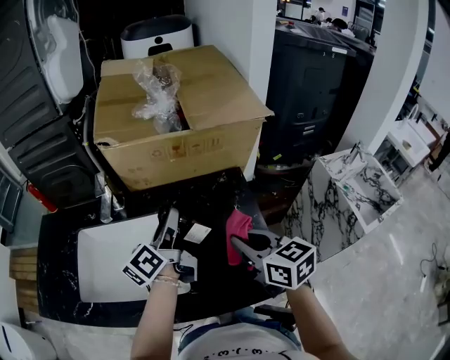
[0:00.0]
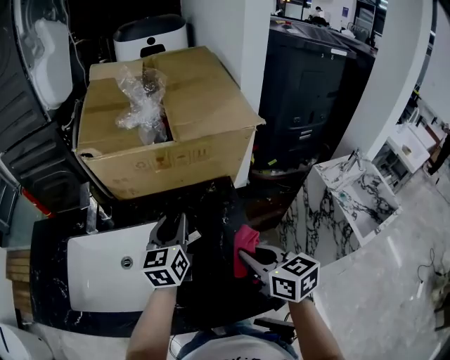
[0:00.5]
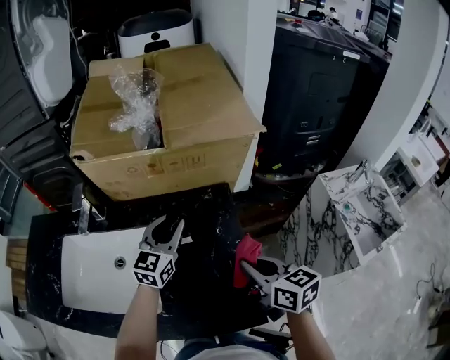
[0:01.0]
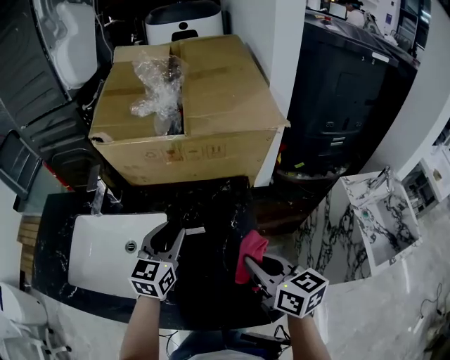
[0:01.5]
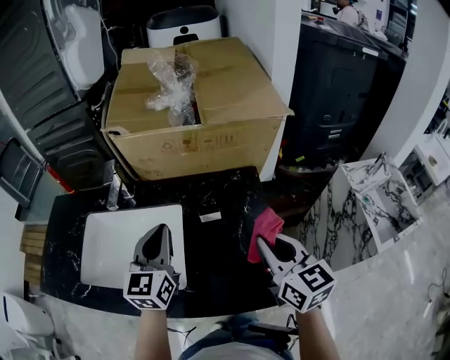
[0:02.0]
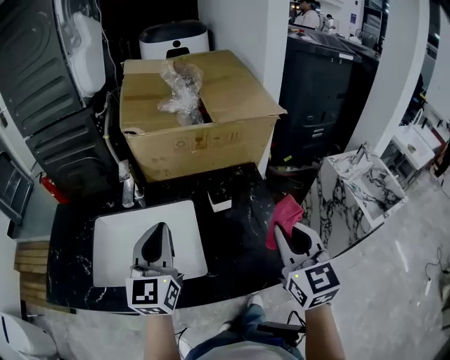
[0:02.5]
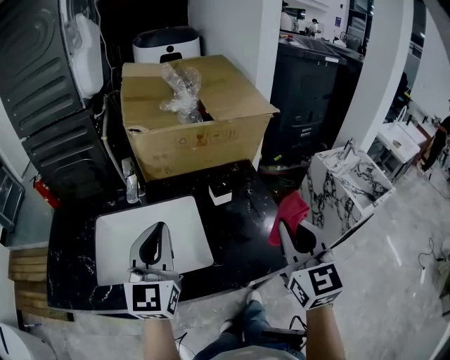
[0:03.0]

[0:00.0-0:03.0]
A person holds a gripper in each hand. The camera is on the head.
0:00.0 to 0:01.5: The left gripper goes approximately 10 cm downward and to the right, and rolls clockwise, seen from behind, by approximately 50 degrees; the right gripper shifts roughly 10 cm to the right.
0:01.5 to 0:03.0: The right gripper shifts about 20 cm upward, backward and to the left, and rotates roughly 50 degrees; the left gripper is displaced backward, to the left and upward by some 25 cm, turns by roughly 20 degrees, and closes its fingers.

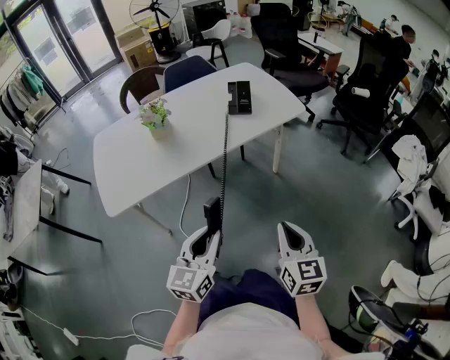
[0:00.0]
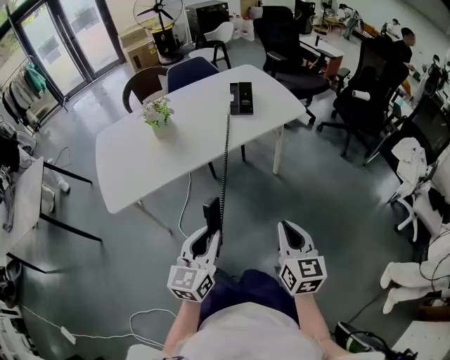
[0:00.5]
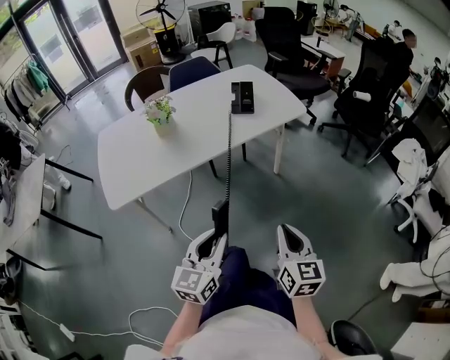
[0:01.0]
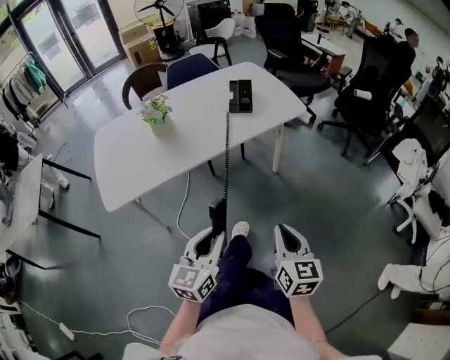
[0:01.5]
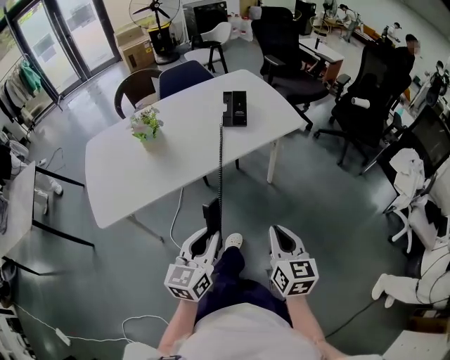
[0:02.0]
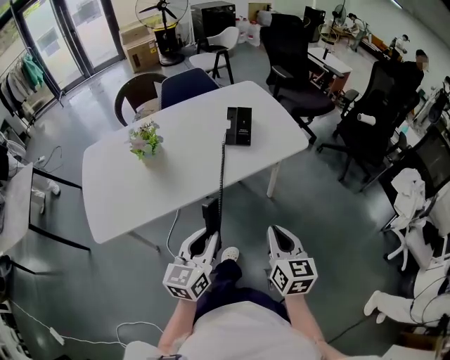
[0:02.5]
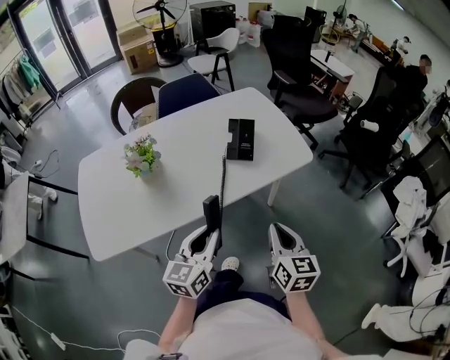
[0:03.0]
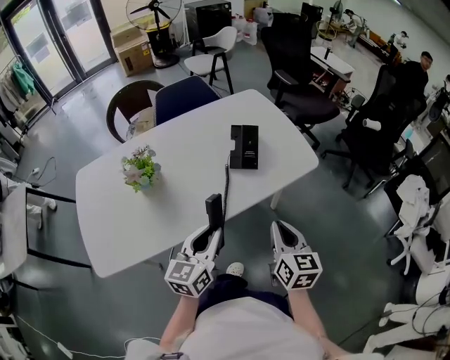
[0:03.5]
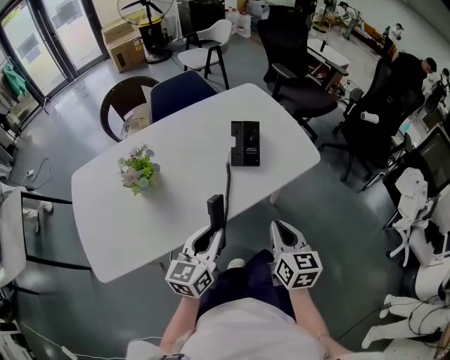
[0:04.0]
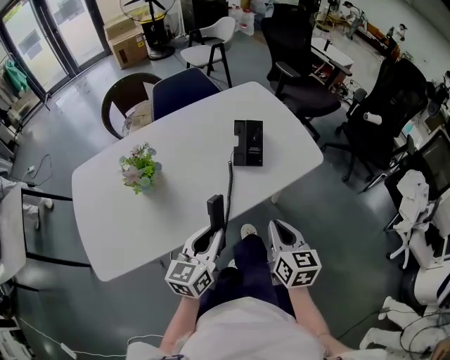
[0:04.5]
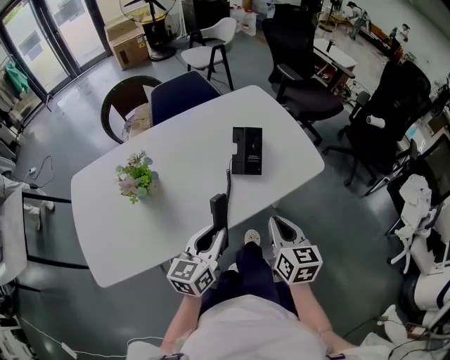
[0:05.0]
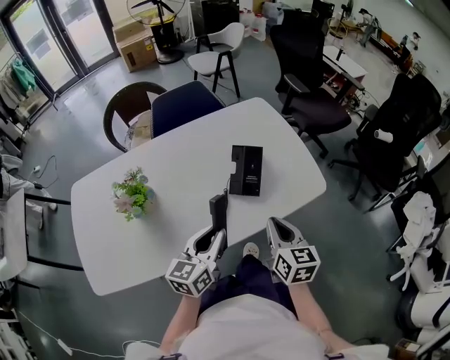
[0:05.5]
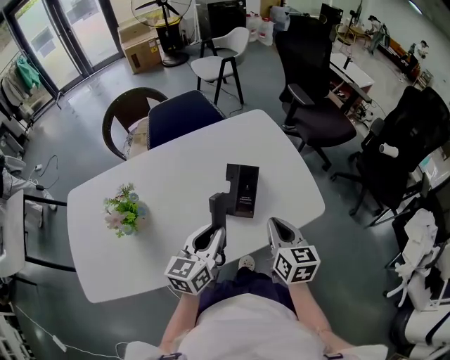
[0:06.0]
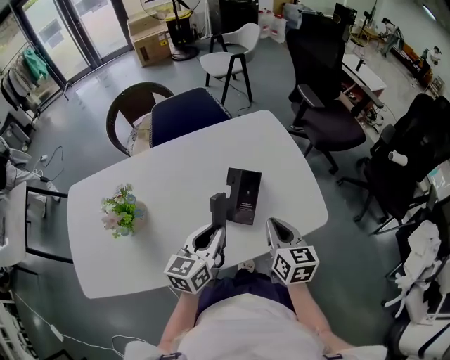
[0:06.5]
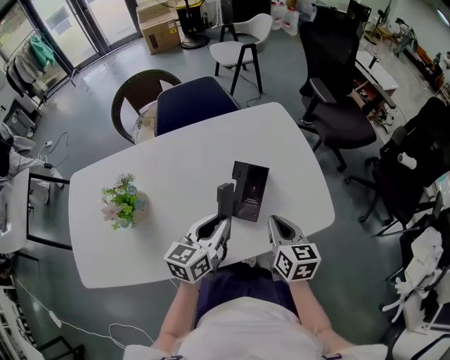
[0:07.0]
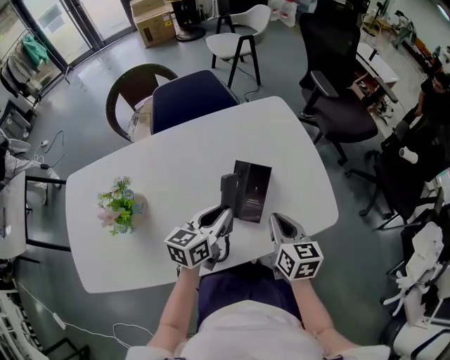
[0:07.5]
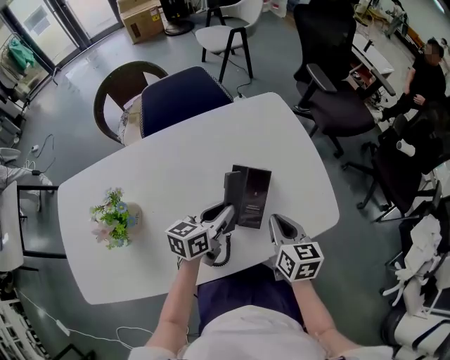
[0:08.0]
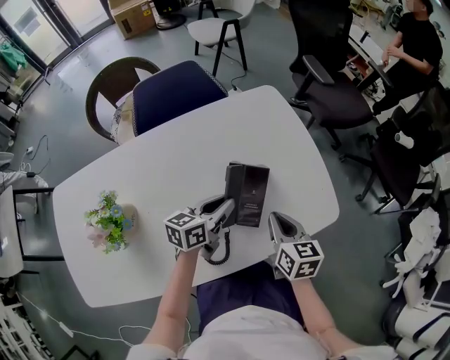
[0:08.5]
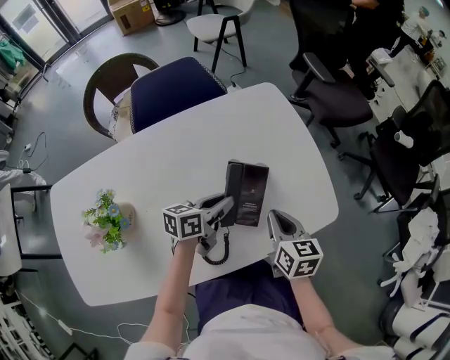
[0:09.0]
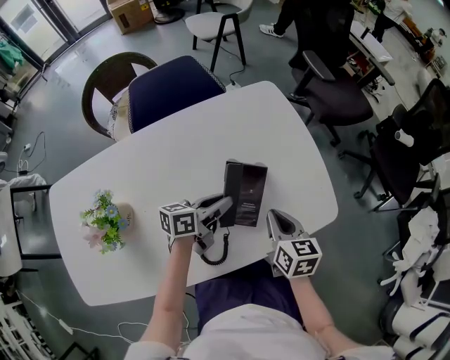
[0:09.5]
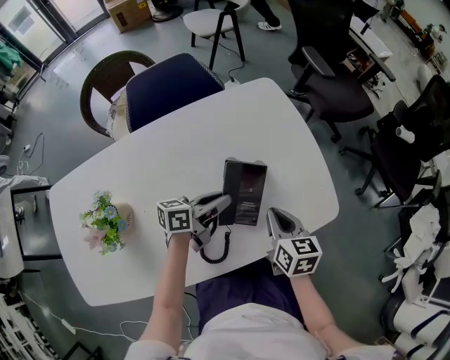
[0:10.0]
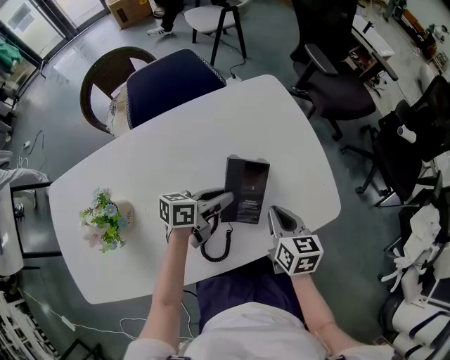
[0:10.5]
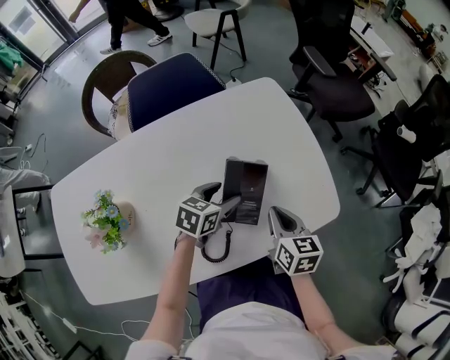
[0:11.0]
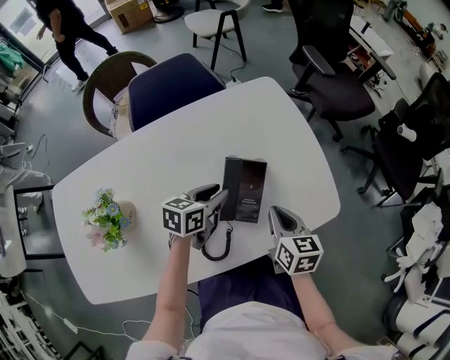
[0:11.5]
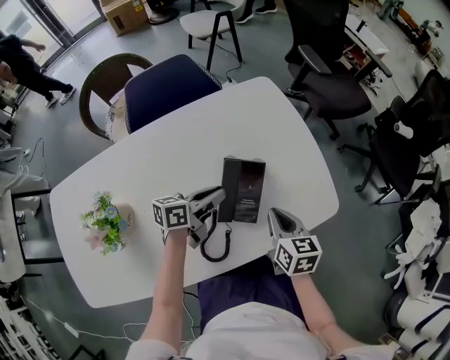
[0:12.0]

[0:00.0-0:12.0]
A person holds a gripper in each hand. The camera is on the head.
0:00.0 to 0:02.0: Both grippers move forward, roughly 5 cm.
0:02.0 to 0:04.0: Both grippers travel together forward, about 25 cm.
0:04.0 to 0:06.0: Both grippers travel together forward, some 20 cm.
0:06.0 to 0:08.0: The right gripper heads downward and forward, covering about 10 cm. Meanwhile the left gripper shifts some 15 cm forward and downward.
0:08.0 to 0:10.0: The left gripper changes its angle by about 20 degrees.
0:10.0 to 0:12.0: The left gripper opens, then closes again.

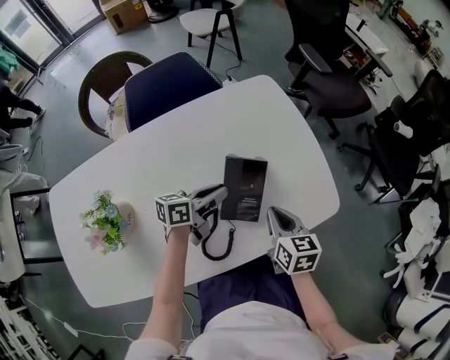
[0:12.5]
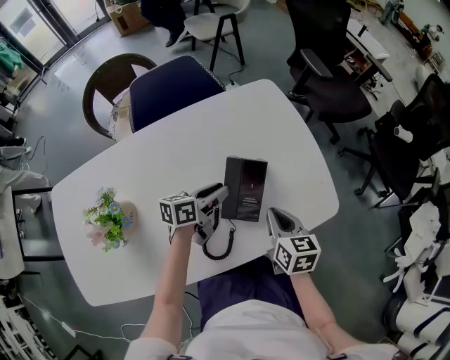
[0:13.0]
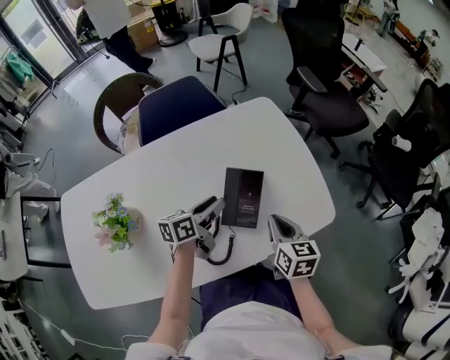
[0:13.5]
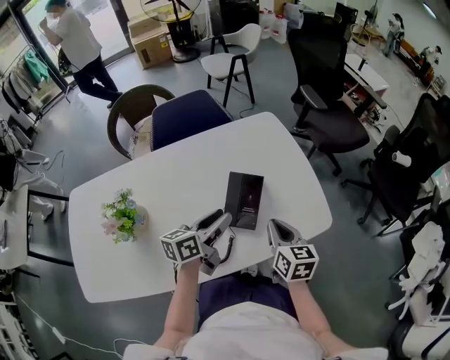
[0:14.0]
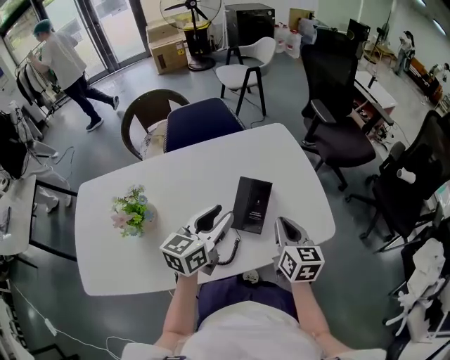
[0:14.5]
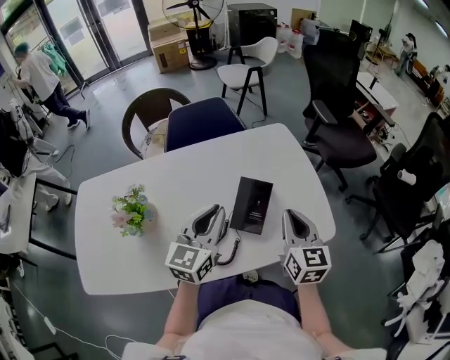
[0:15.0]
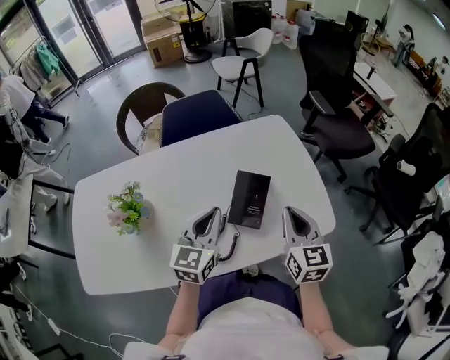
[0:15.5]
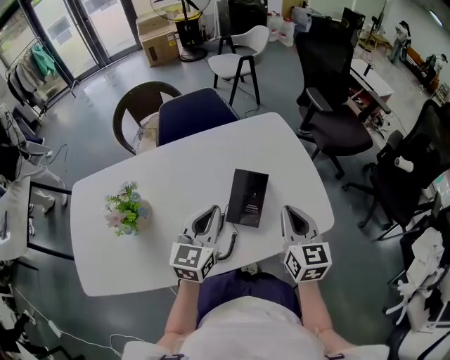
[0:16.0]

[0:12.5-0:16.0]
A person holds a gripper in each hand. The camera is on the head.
0:12.5 to 0:14.5: The right gripper goes approximately 10 cm upward. Meanwhile the left gripper goes about 15 cm upward and backward, and swivels about 40 degrees.
0:14.5 to 0:16.0: The left gripper swivels approximately 20 degrees, and closes its fingers.

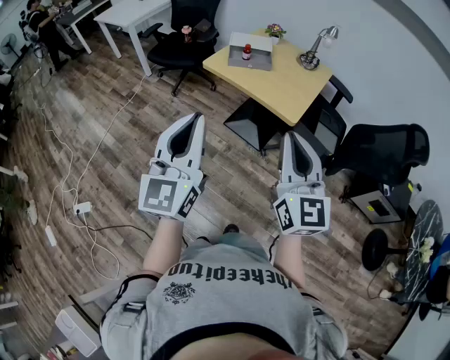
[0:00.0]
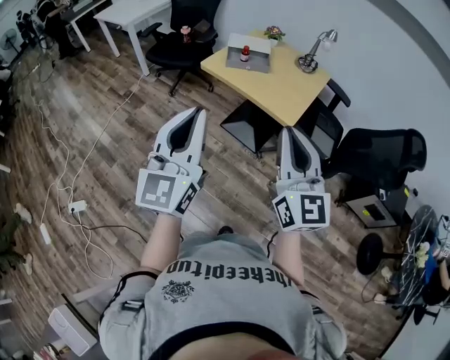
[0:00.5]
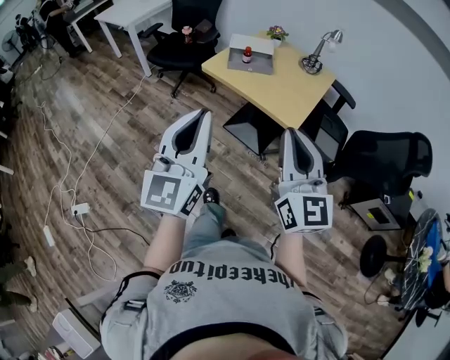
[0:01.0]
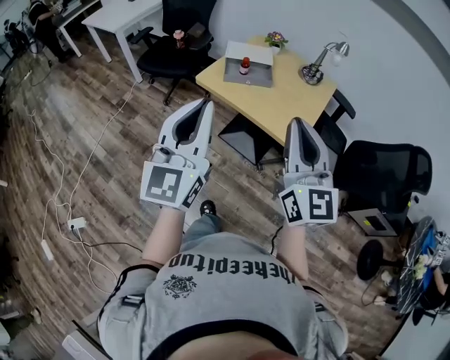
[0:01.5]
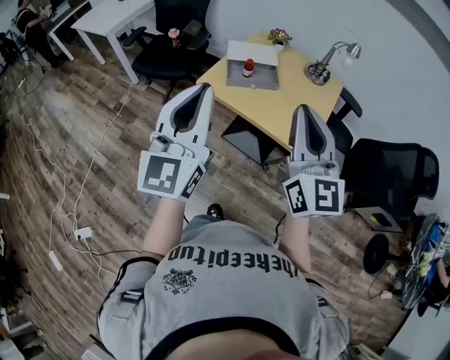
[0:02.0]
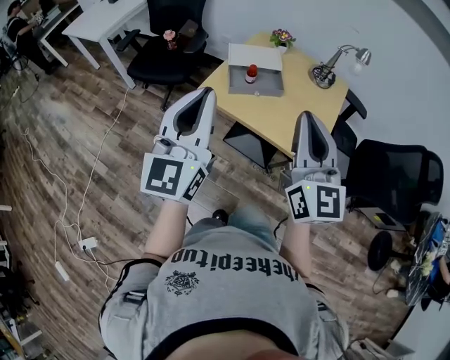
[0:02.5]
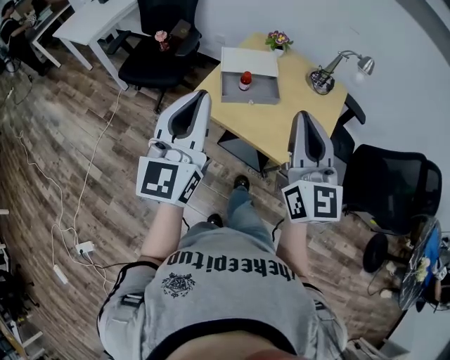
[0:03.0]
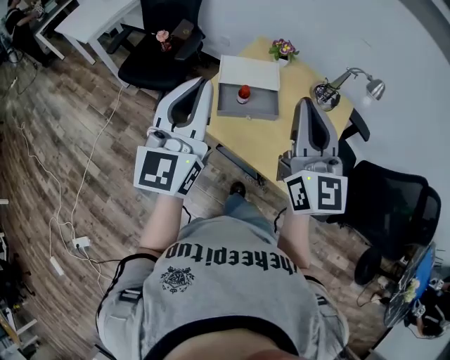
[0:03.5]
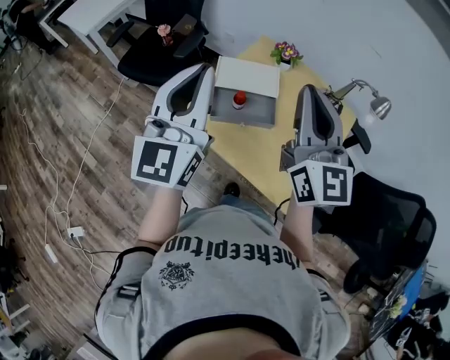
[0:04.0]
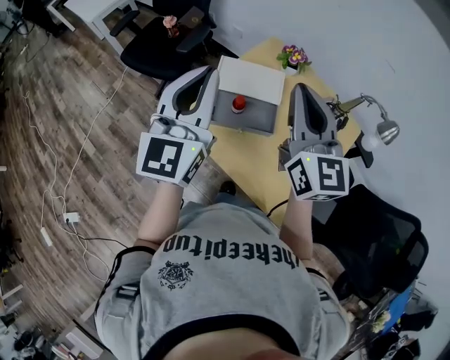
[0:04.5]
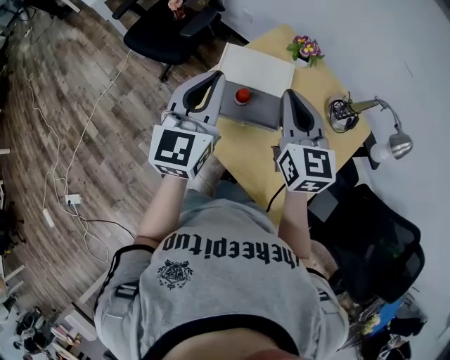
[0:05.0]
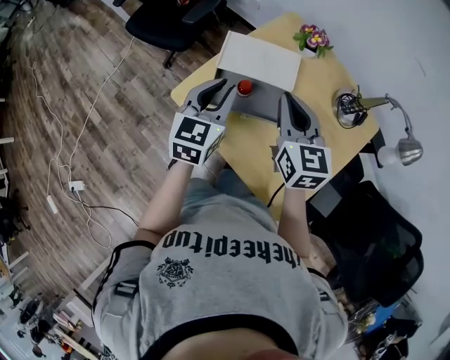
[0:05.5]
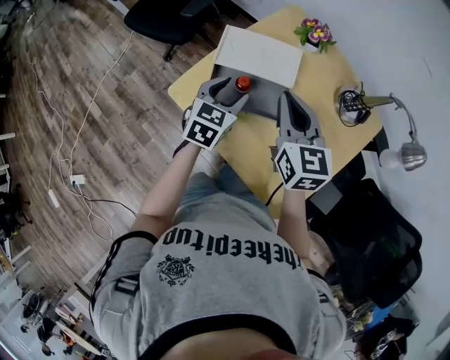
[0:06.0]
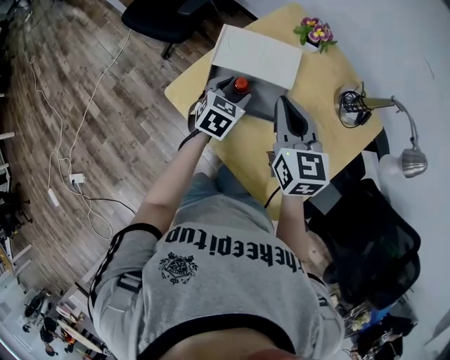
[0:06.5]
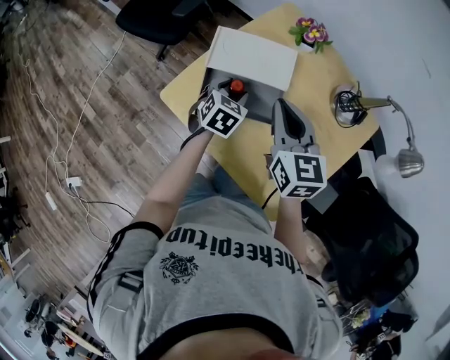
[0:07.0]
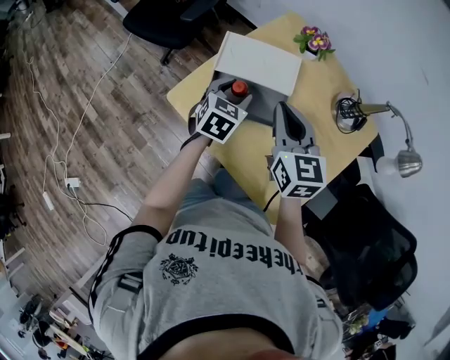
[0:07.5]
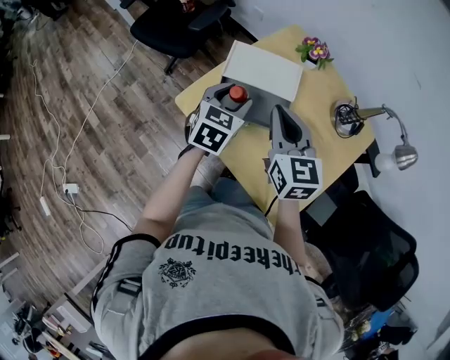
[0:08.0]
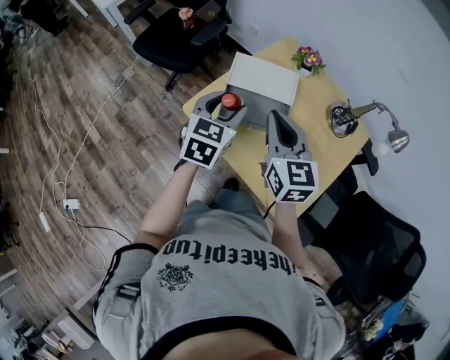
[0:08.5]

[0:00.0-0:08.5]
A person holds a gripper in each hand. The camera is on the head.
0:00.0 to 0:02.0: Both grippers travel together forward, roughly 30 cm.
0:02.0 to 0:04.0: Both grippers move forward, about 30 cm.
0:04.0 to 0:06.5: The left gripper heads downward, covering about 40 cm, tilts its fingers about 60 degrees downward, and opens up. The right gripper shifts some 25 cm downward and forward, and angles its fingers downward, by approximately 30 degrees.
0:06.5 to 0:08.5: The left gripper is displaced upward and backward by approximately 20 cm; the right gripper is displaced backward, upward and to the left by roughly 10 cm.
